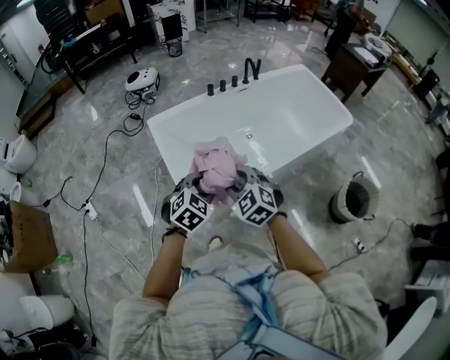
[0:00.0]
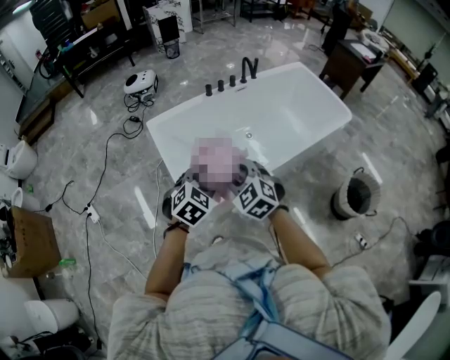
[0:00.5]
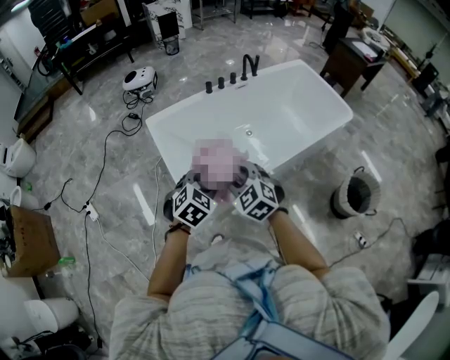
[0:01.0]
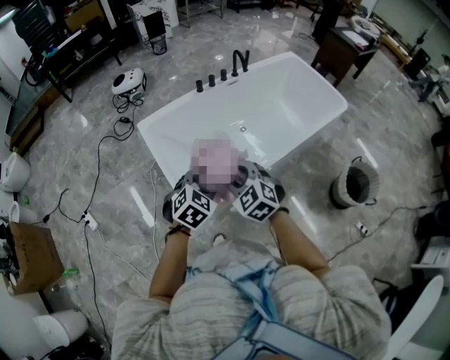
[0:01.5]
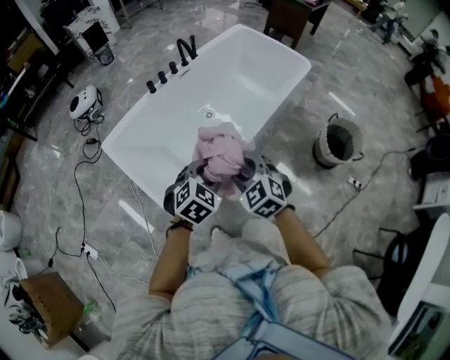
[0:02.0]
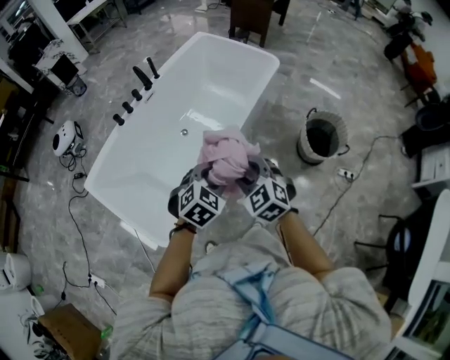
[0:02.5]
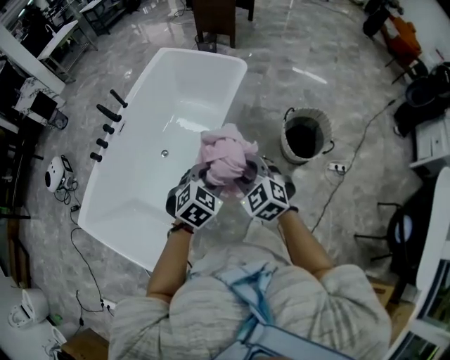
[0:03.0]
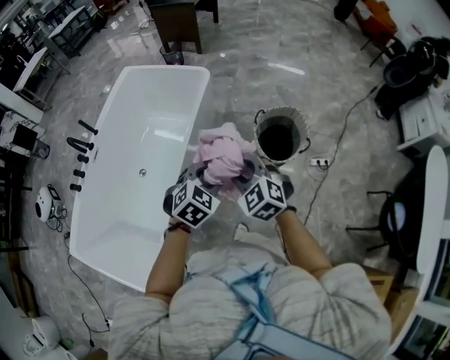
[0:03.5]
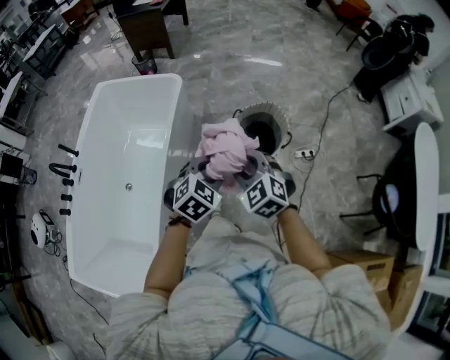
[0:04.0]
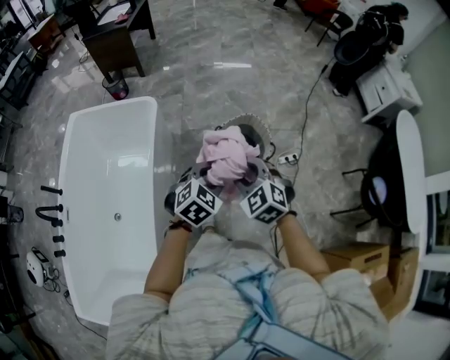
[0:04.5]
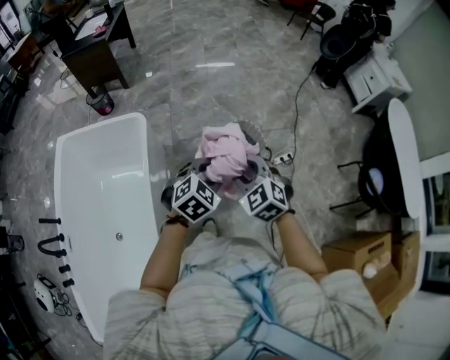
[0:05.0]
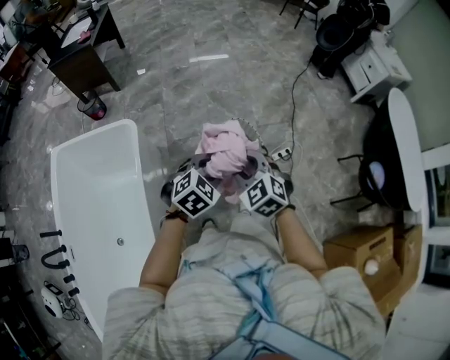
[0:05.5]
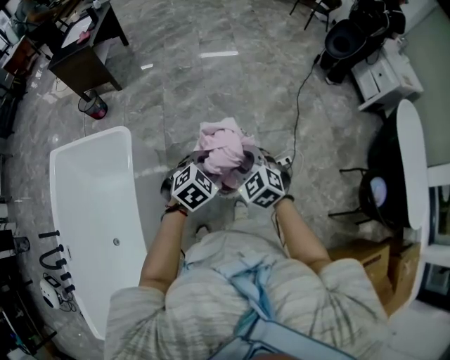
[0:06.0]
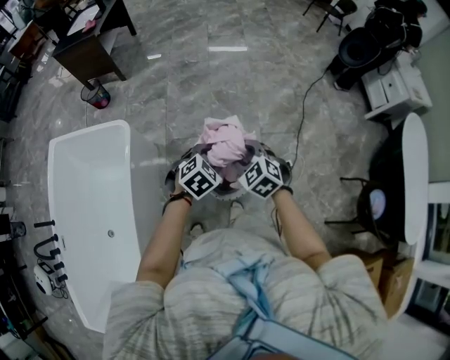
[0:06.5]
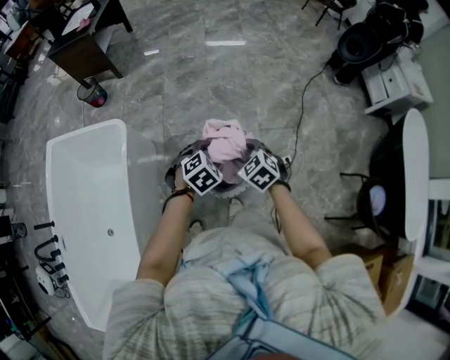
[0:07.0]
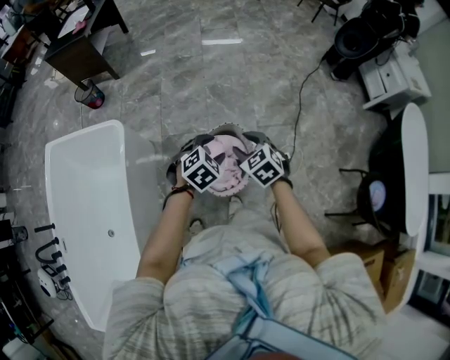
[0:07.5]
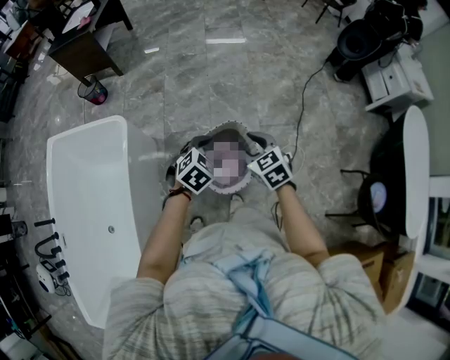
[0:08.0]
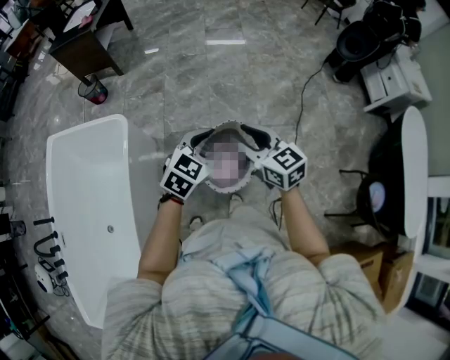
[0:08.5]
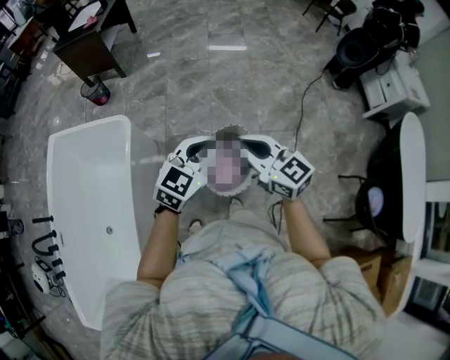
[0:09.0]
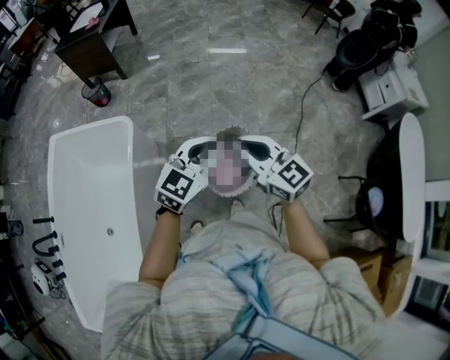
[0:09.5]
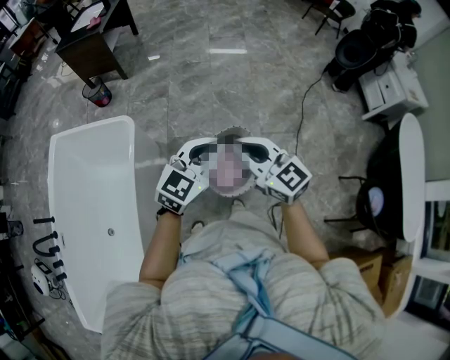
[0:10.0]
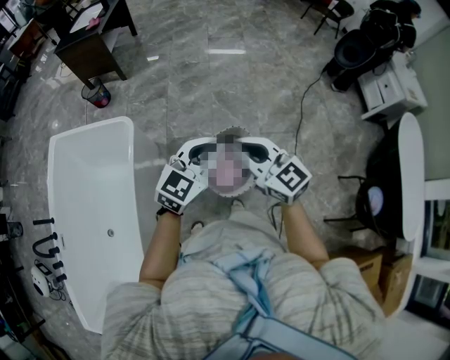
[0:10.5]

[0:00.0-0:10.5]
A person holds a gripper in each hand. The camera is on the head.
0:00.0 to 0:02.0: The right gripper is displaced to the right by some 10 cm, and turns by about 20 degrees. Meanwhile the left gripper moves to the right and forward, some 15 cm, and swivels about 20 degrees.
0:02.0 to 0:04.0: Both grippers are carried some 60 cm. The left gripper turns by roughly 40 degrees, while the right gripper rotates roughly 30 degrees.
0:04.0 to 0:06.5: Both grippers are carried forward, some 40 cm.
0:06.5 to 0:08.5: Both grippers travel together upward, approximately 10 cm. The left gripper swivels roughly 20 degrees. The right gripper changes its angle by some 40 degrees.
0:08.5 to 0:10.5: The left gripper travels upward by roughly 10 cm, and closes its fingers. The right gripper shifts roughly 10 cm upward, to the left and backward.

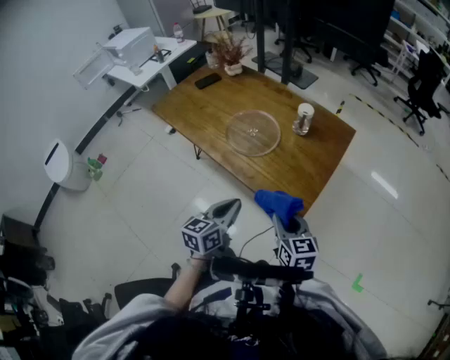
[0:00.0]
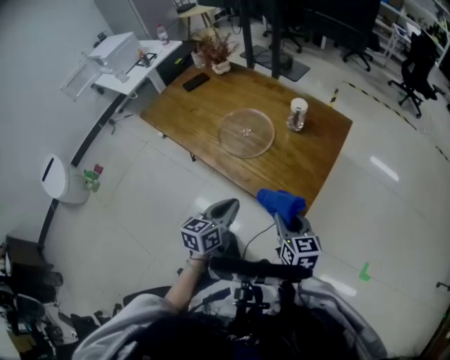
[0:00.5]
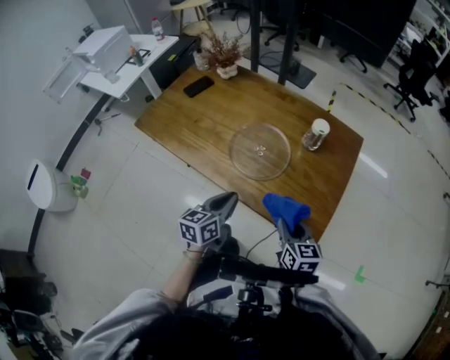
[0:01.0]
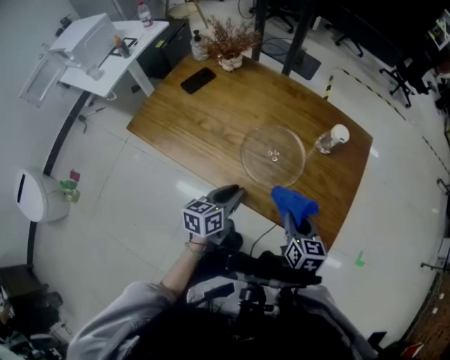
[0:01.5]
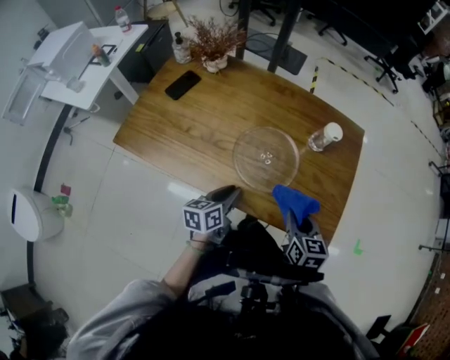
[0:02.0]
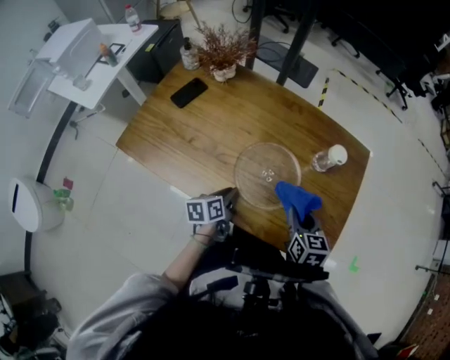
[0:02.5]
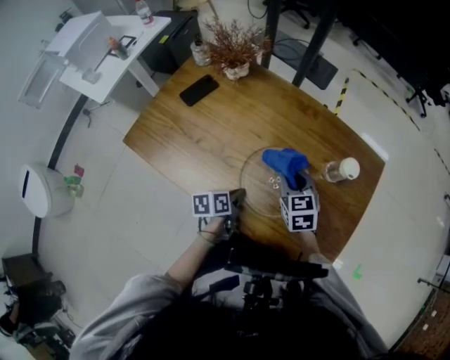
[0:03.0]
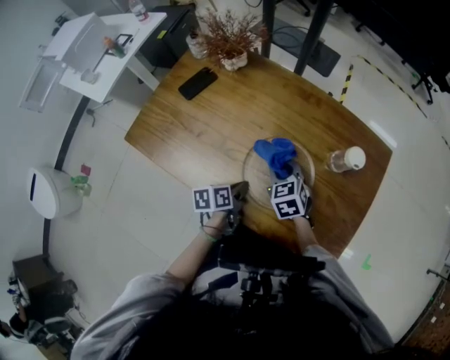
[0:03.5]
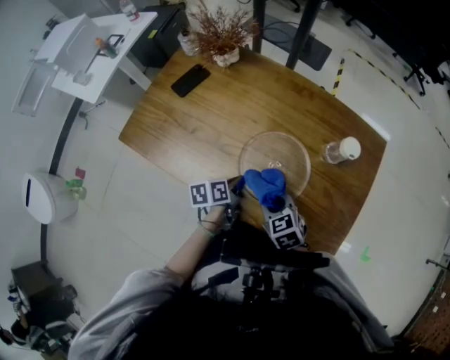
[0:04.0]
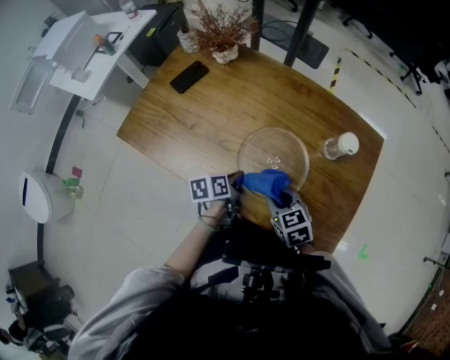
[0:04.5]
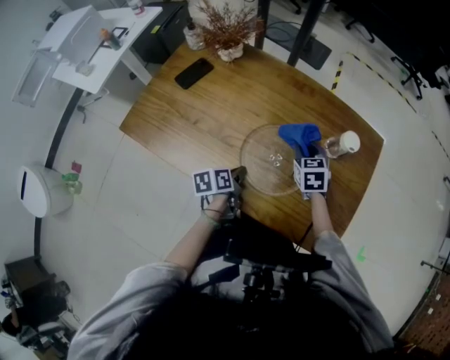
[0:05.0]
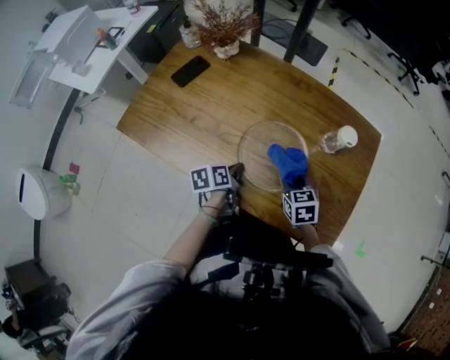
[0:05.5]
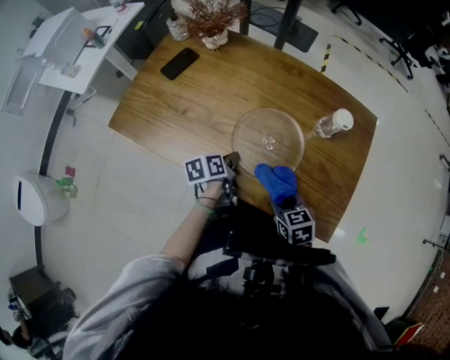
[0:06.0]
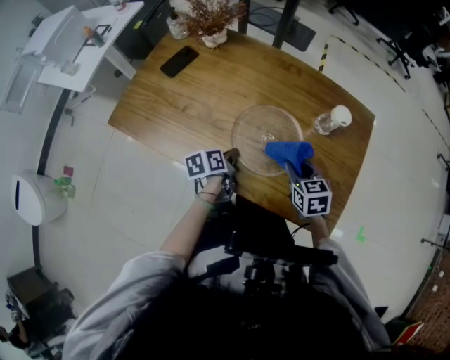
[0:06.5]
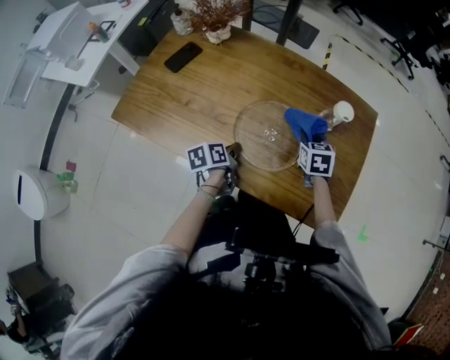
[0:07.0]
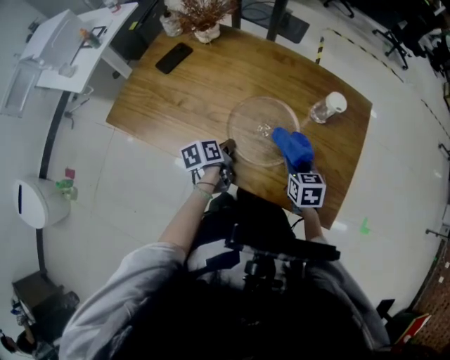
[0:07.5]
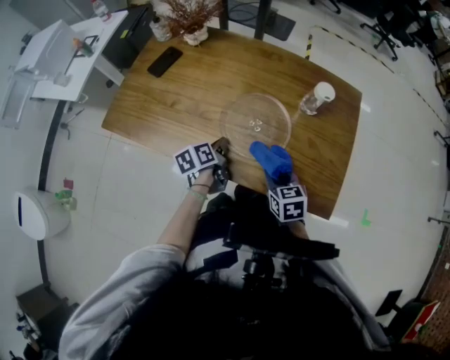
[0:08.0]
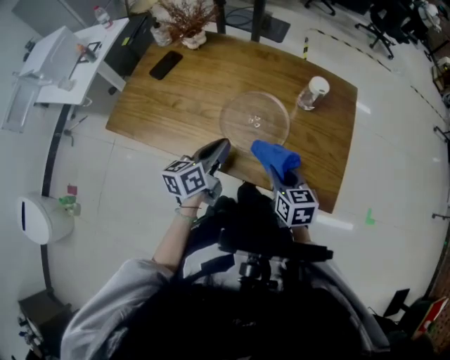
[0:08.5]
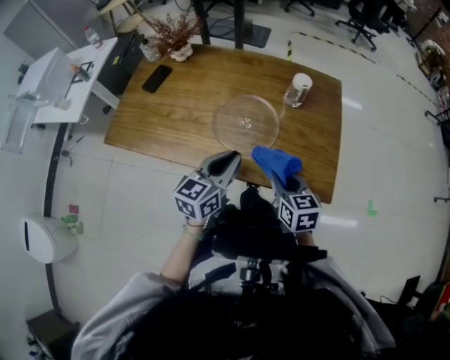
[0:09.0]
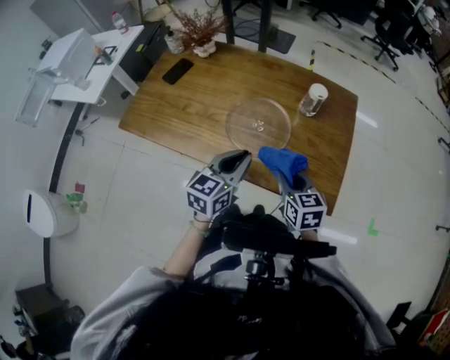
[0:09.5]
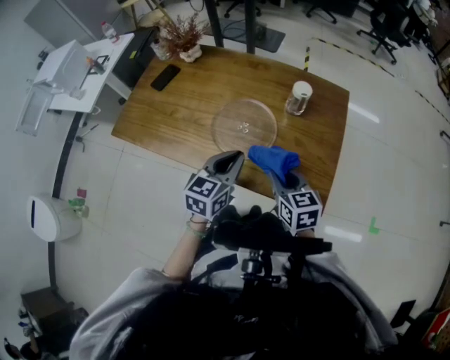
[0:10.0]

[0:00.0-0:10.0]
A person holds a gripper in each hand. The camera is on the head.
0:00.0 to 0:02.0: The right gripper changes place by roughly 20 cm, and rotates approximately 30 degrees, while the left gripper ends up about 30 cm from where it was, and swivels approximately 30 degrees.
0:02.0 to 0:04.0: The left gripper is displaced forward and downward by about 10 cm, and turns by approximately 30 degrees; the right gripper shifts about 15 cm to the left and downward, goes forward and returns, roughly 20 cm each way, and turns by approximately 40 degrees.
0:04.0 to 0:06.0: The right gripper travels to the right by some 5 cm, and goes forward and returns, roughly 15 cm each way.
0:06.0 to 0:08.0: The right gripper reaches roughly 20 cm forward, then returns.
0:08.0 to 0:10.0: The left gripper moves upward, to the right and backward, roughly 25 cm, and twists some 50 degrees clockwise, seen from behind; the right gripper travels upward and to the right by approximately 10 cm.

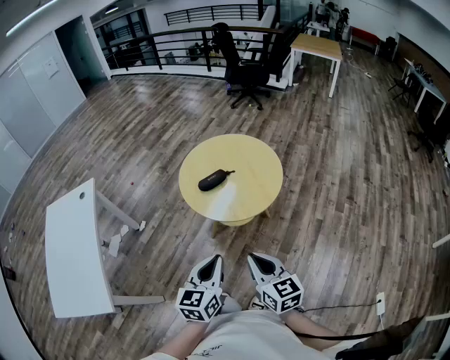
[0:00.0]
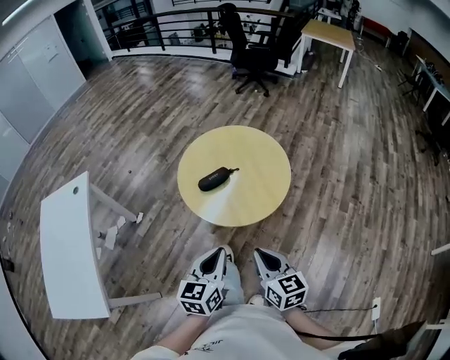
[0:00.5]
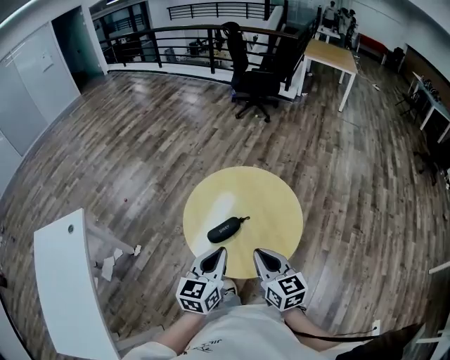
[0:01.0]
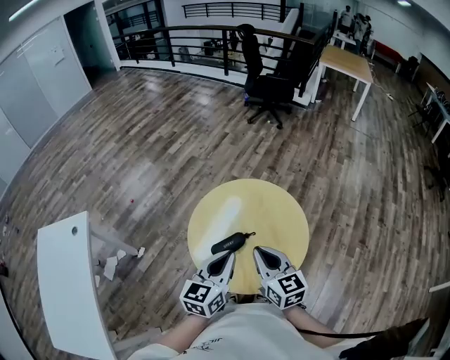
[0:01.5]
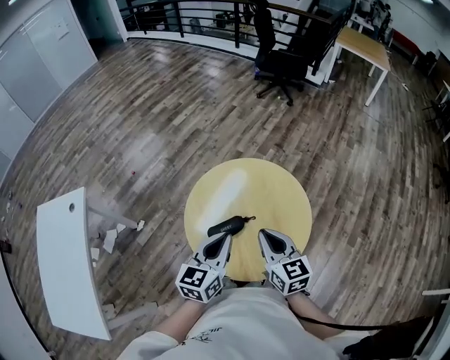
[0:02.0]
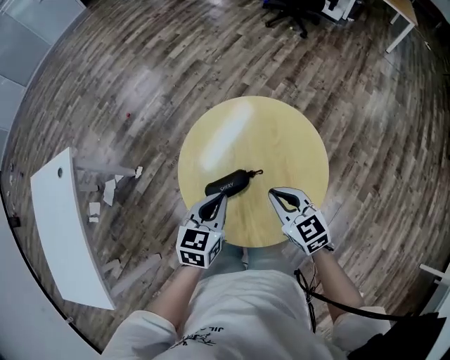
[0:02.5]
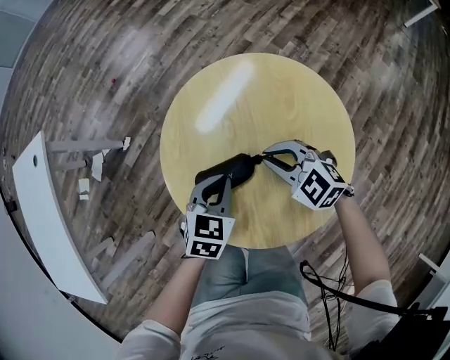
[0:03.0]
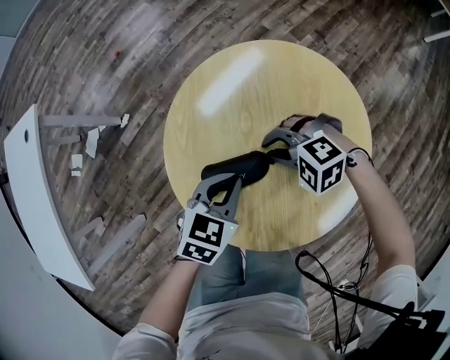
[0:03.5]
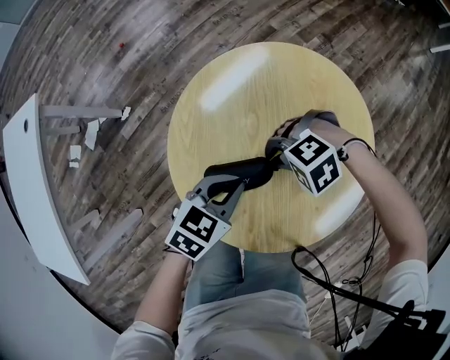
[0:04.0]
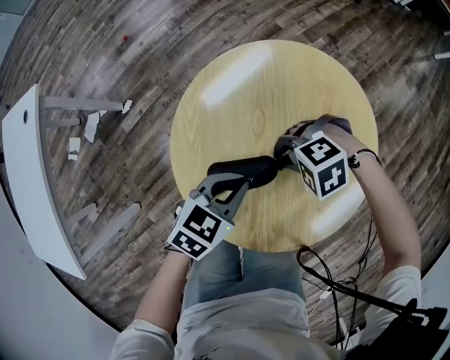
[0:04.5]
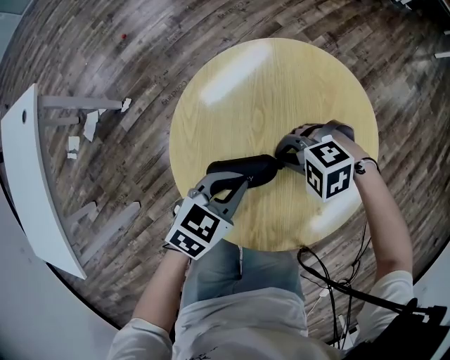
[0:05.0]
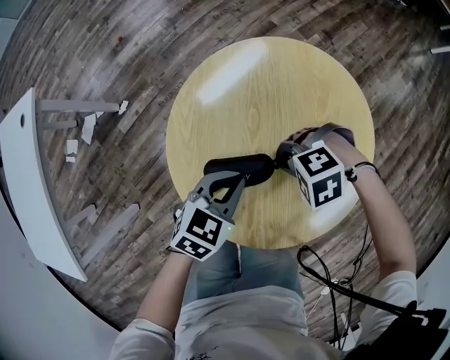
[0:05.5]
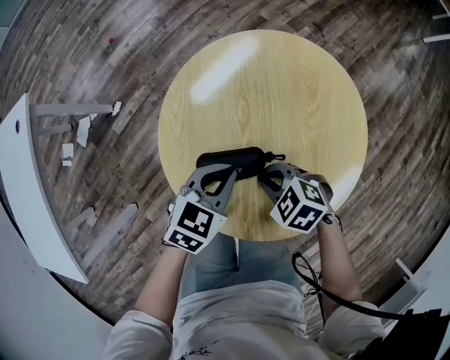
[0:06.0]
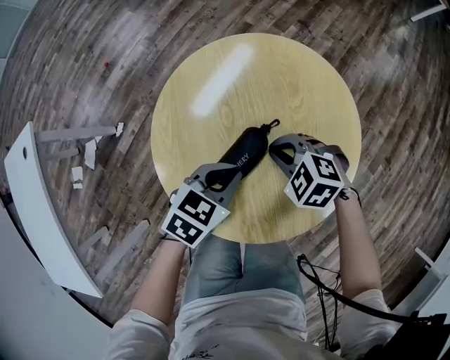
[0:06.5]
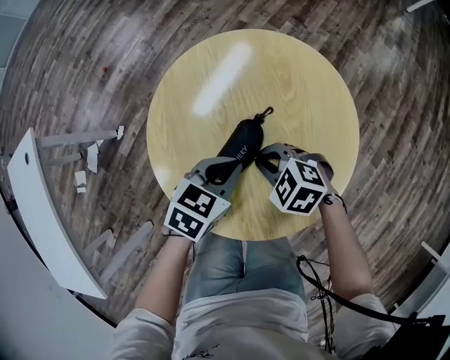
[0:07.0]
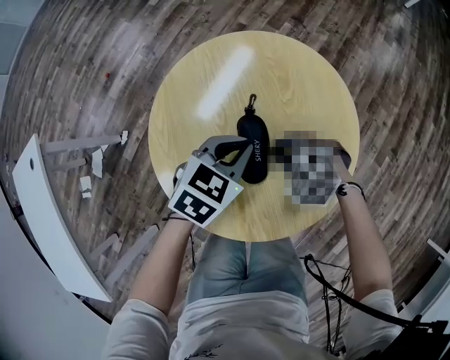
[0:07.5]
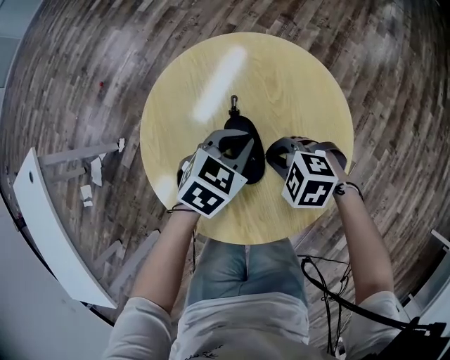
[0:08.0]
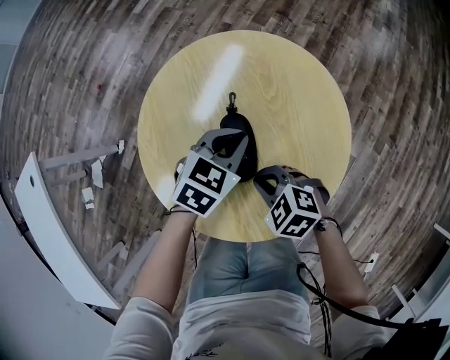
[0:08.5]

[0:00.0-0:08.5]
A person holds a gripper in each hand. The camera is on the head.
0:00.0 to 0:02.0: The pair of grippers is taken forward, roughly 40 cm.
0:02.0 to 0:04.0: The grippers both shift downward by roughly 30 cm. The left gripper turns by some 30 degrees. The right gripper tips its fingers downward by some 50 degrees.
0:04.0 to 0:06.5: The right gripper shifts by roughly 5 cm, and rotates around the line of its fingers by approximately 50 degrees, clockwise from behind.
0:06.5 to 0:08.5: The left gripper shifts by some 10 cm. Meanwhile the right gripper ends up roughly 10 cm from where it was.
